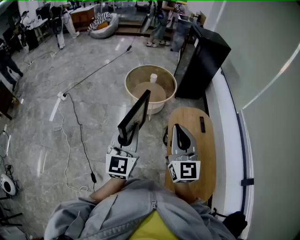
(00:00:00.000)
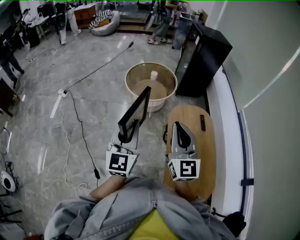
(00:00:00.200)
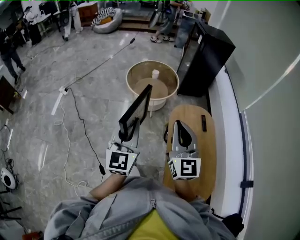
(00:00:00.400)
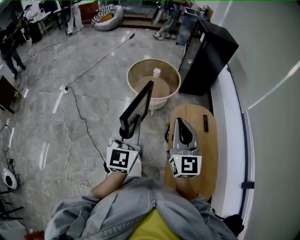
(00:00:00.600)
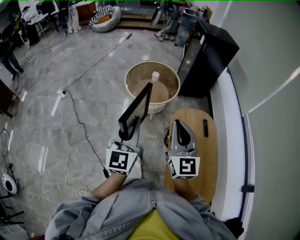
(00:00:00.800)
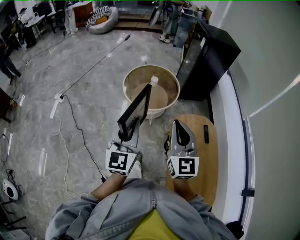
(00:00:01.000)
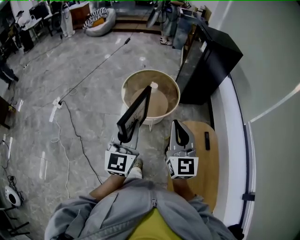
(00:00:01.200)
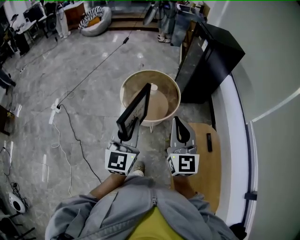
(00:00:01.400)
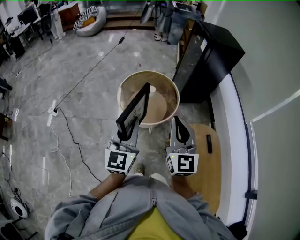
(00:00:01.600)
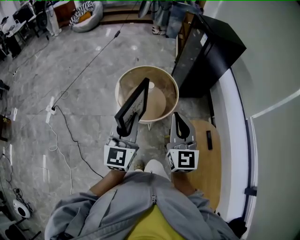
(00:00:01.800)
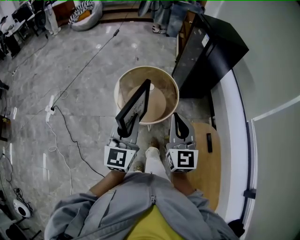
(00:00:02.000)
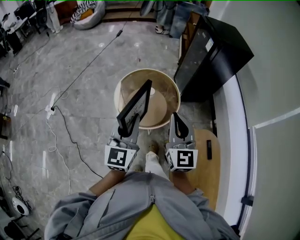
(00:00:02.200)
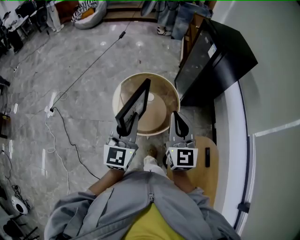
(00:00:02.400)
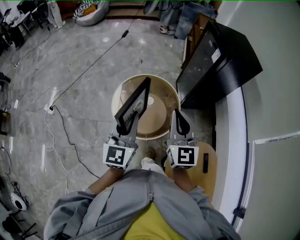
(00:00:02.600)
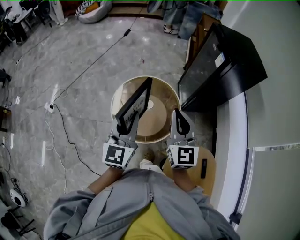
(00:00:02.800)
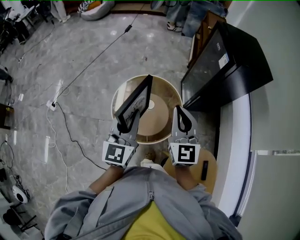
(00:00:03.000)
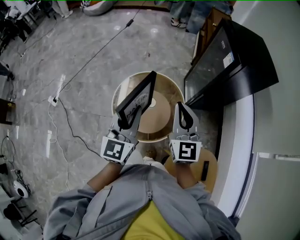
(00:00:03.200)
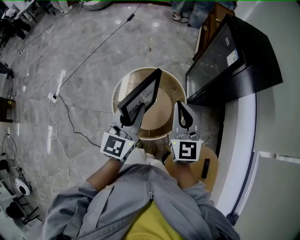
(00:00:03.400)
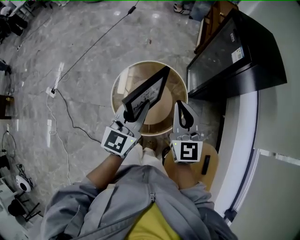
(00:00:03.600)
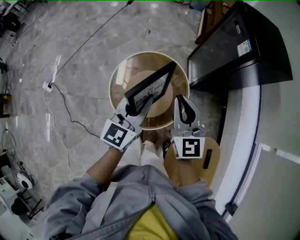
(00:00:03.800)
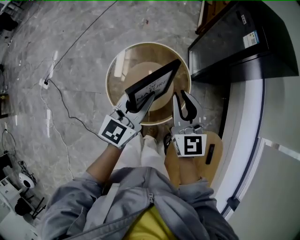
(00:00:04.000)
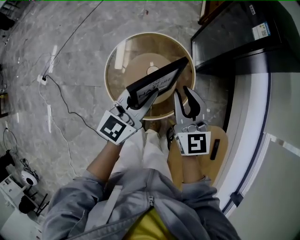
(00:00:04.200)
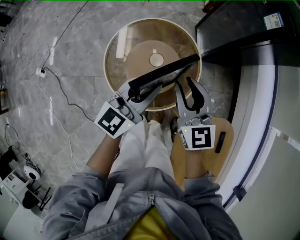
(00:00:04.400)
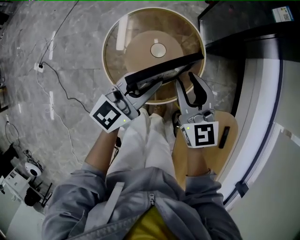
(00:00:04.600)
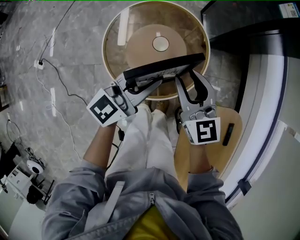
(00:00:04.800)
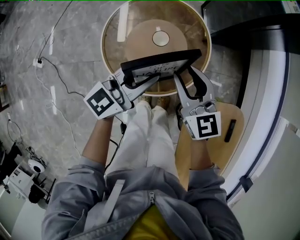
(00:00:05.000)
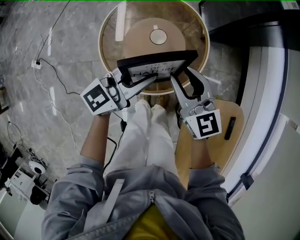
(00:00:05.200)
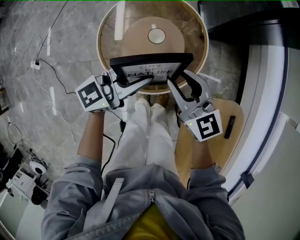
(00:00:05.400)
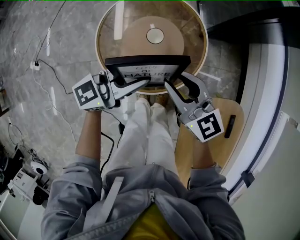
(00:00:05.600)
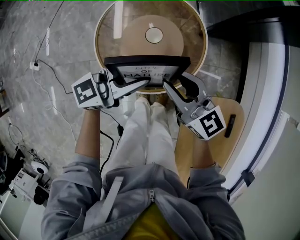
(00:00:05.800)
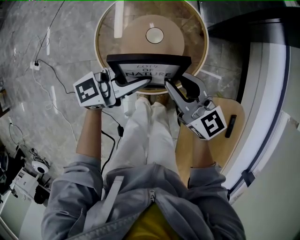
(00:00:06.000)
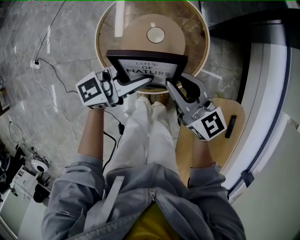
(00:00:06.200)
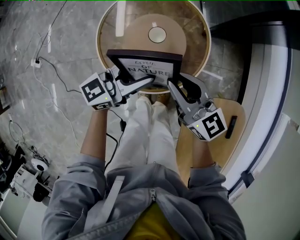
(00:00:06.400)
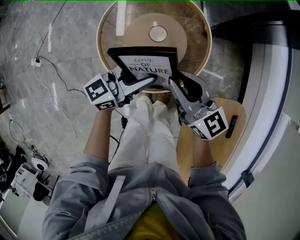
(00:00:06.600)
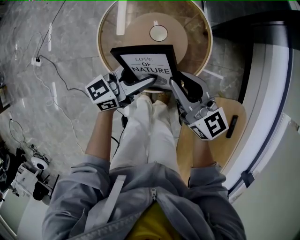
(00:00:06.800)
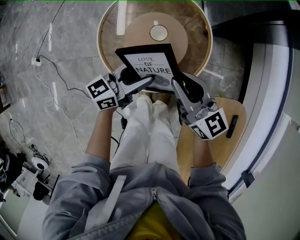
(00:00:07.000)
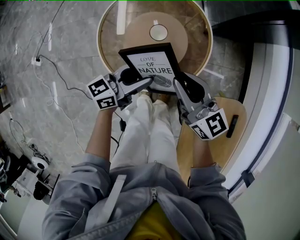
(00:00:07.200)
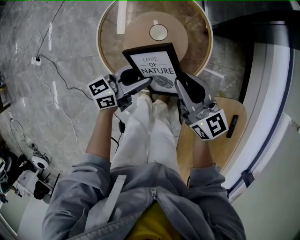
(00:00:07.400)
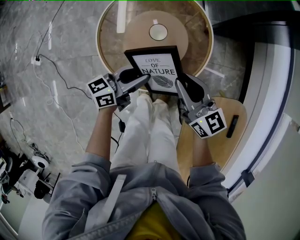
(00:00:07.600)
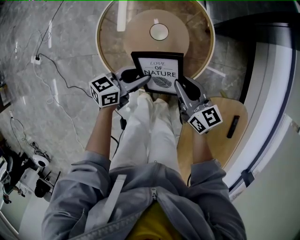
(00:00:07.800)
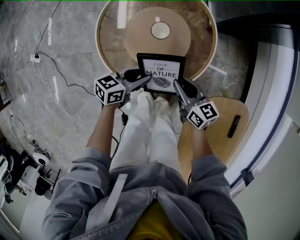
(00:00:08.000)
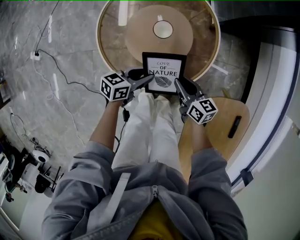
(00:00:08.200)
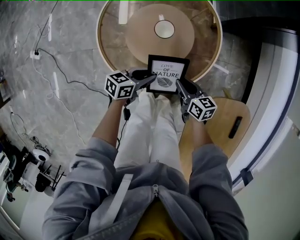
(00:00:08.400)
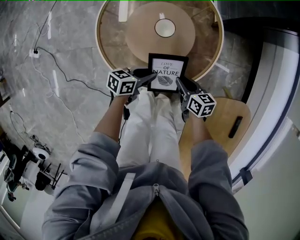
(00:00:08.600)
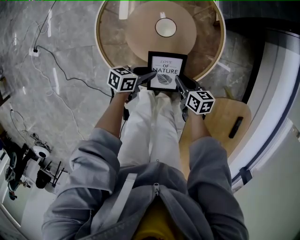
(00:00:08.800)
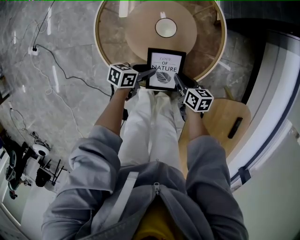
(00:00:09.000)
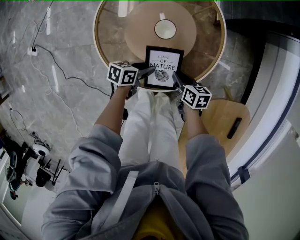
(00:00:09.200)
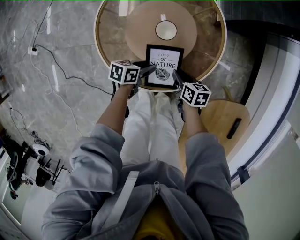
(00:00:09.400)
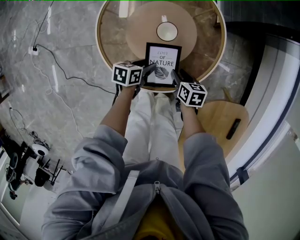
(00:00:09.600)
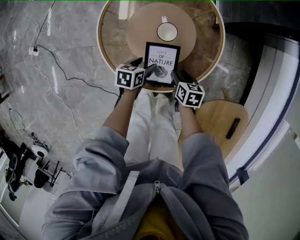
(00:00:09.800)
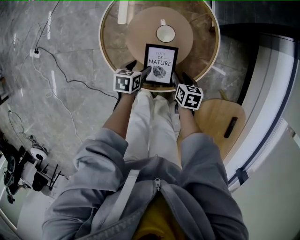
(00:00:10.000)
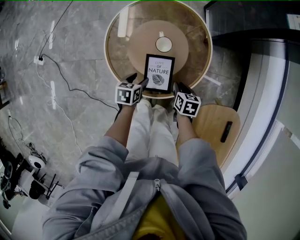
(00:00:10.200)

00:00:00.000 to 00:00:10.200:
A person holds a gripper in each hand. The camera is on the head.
00:00:00.000 to 00:00:01.400: Both grippers travel together forward, about 35 cm.
00:00:01.400 to 00:00:03.000: The two grippers go roughly 40 cm forward.
00:00:03.000 to 00:00:04.400: Both grippers travel together downward, about 20 cm. The right gripper opens up. Meanwhile the left gripper swivels some 30 degrees.
00:00:04.400 to 00:00:05.800: The left gripper shifts about 10 cm downward, and turns by some 30 degrees; the right gripper moves downward and backward, approximately 10 cm, and rotates some 30 degrees.
00:00:05.800 to 00:00:07.200: The left gripper travels downward by some 10 cm, rotates roughly 30 degrees, and opens.
00:00:07.200 to 00:00:08.800: Both grippers move downward, roughly 25 cm. The left gripper turns by approximately 40 degrees. The right gripper angles its fingers downward, by approximately 30 degrees.
00:00:08.800 to 00:00:10.200: The right gripper travels upward by about 5 cm, changes its angle by approximately 20 degrees, and opens, then closes again. Meanwhile the left gripper heads to the left and upward, covering roughly 10 cm, turns by about 30 degrees, and opens.

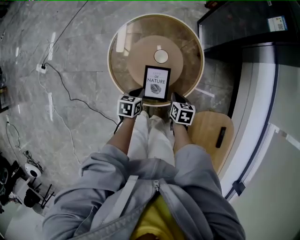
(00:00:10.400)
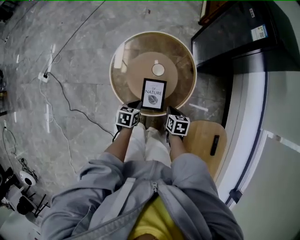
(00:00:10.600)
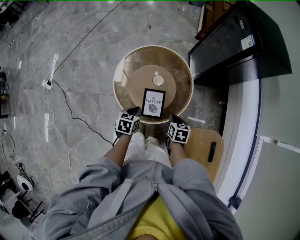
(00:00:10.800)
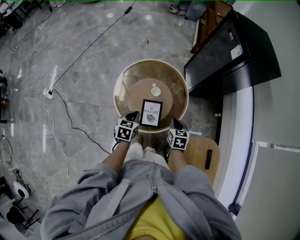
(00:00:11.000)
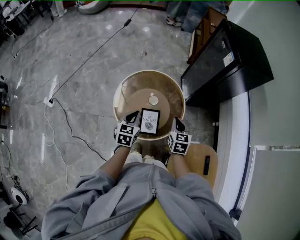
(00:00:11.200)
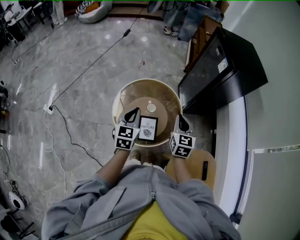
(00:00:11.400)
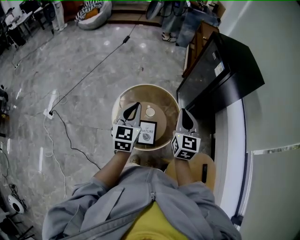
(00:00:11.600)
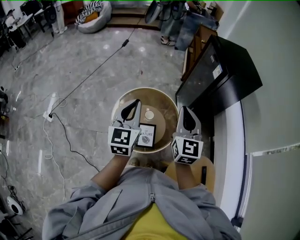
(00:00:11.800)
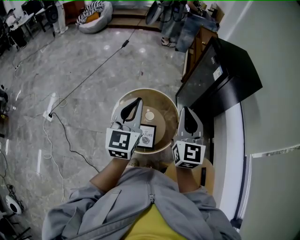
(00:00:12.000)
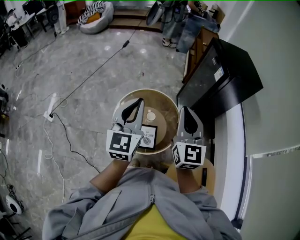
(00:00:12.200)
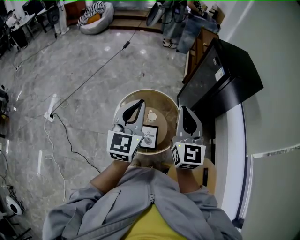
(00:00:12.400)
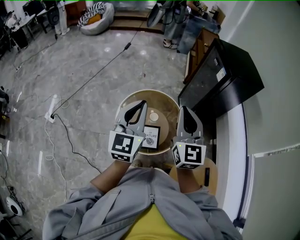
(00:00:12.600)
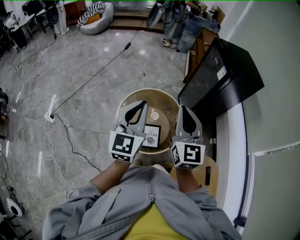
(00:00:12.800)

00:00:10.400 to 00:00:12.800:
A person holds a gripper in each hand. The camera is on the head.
00:00:10.400 to 00:00:11.600: Both grippers travel together upward, roughly 40 cm. The left gripper tilts its fingers roughly 40 degrees upward. Meanwhile the right gripper angles its fingers upward, by approximately 50 degrees.
00:00:11.600 to 00:00:12.800: The right gripper is displaced upward and to the left by about 15 cm. The left gripper is displaced upward by some 10 cm.

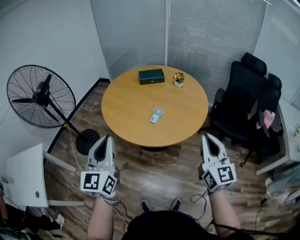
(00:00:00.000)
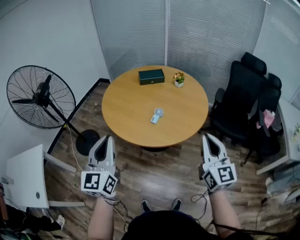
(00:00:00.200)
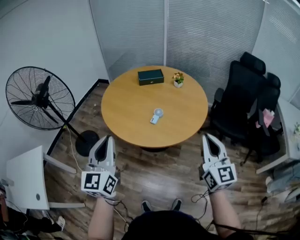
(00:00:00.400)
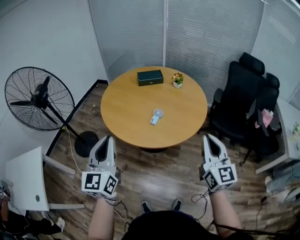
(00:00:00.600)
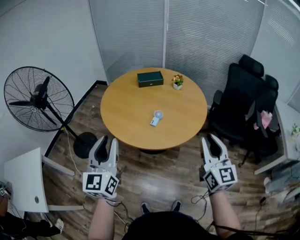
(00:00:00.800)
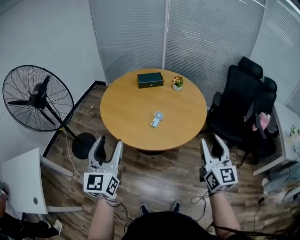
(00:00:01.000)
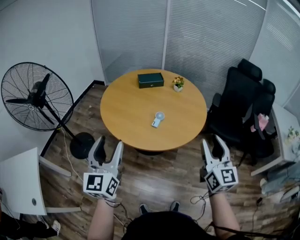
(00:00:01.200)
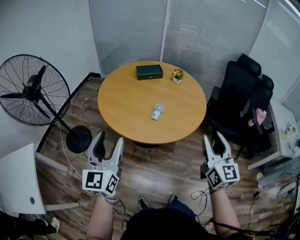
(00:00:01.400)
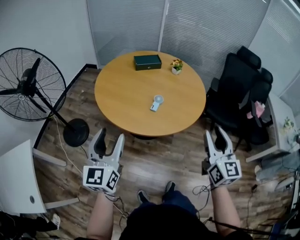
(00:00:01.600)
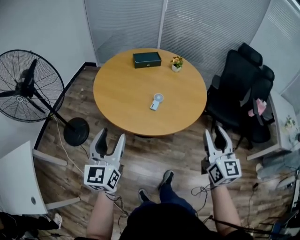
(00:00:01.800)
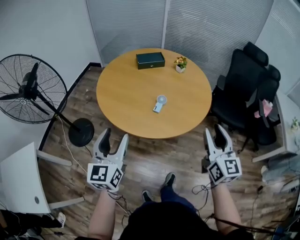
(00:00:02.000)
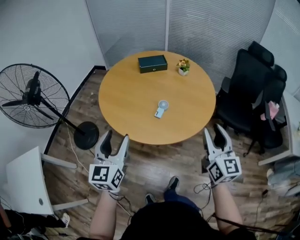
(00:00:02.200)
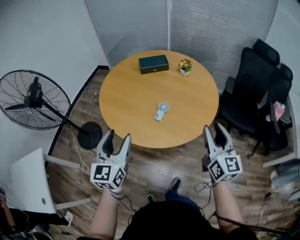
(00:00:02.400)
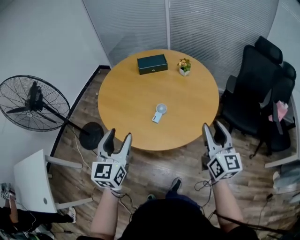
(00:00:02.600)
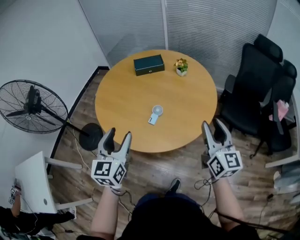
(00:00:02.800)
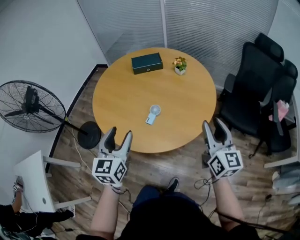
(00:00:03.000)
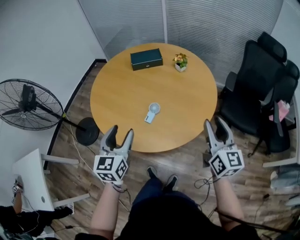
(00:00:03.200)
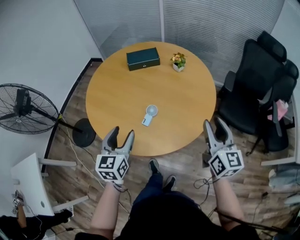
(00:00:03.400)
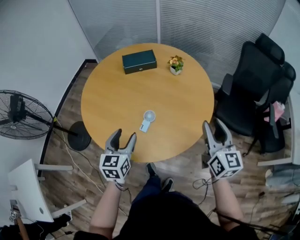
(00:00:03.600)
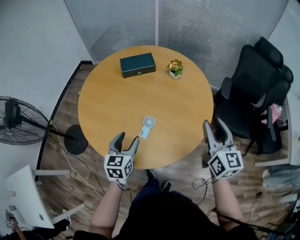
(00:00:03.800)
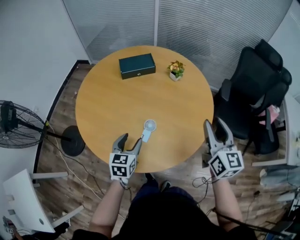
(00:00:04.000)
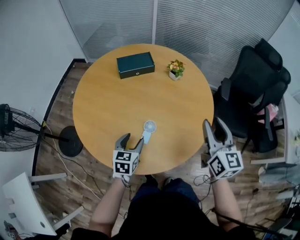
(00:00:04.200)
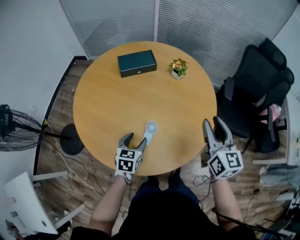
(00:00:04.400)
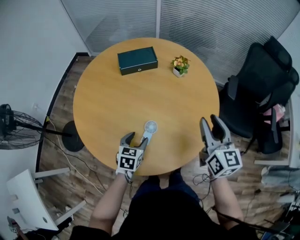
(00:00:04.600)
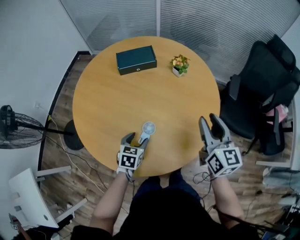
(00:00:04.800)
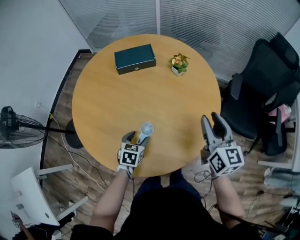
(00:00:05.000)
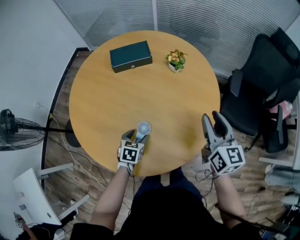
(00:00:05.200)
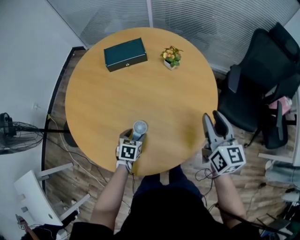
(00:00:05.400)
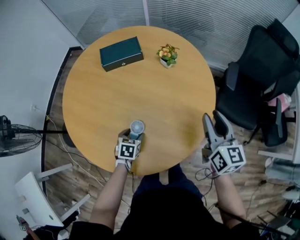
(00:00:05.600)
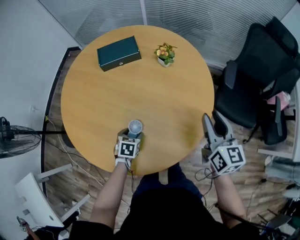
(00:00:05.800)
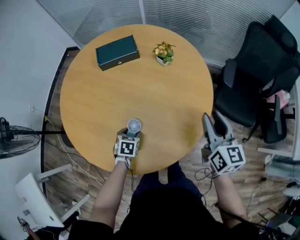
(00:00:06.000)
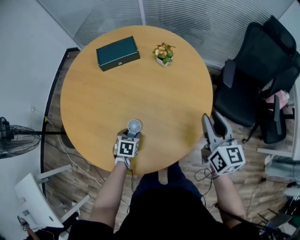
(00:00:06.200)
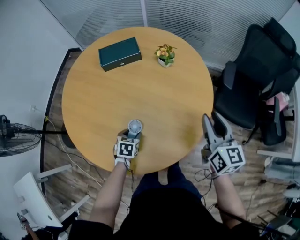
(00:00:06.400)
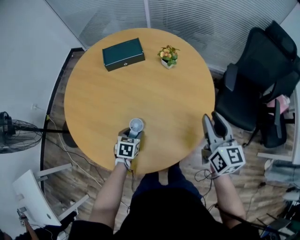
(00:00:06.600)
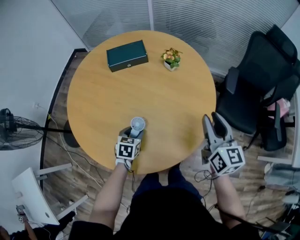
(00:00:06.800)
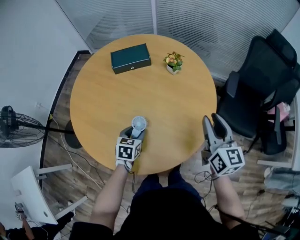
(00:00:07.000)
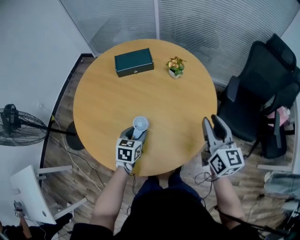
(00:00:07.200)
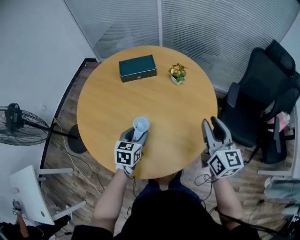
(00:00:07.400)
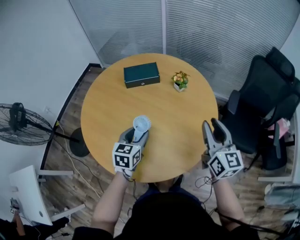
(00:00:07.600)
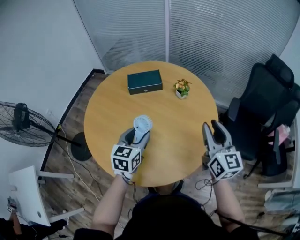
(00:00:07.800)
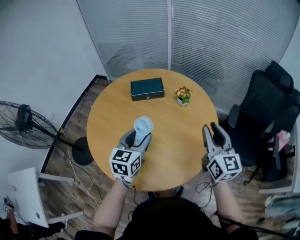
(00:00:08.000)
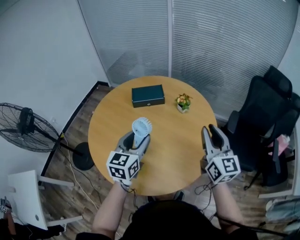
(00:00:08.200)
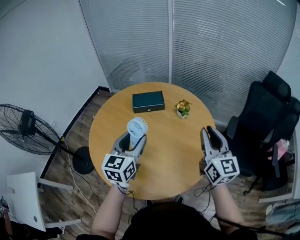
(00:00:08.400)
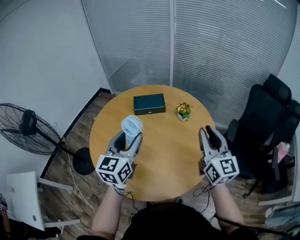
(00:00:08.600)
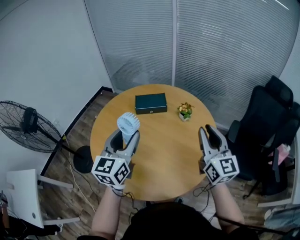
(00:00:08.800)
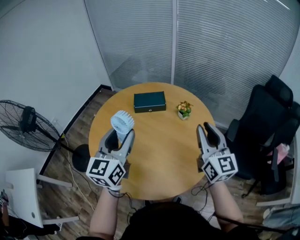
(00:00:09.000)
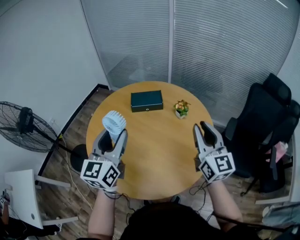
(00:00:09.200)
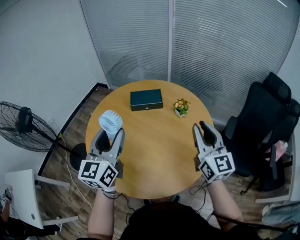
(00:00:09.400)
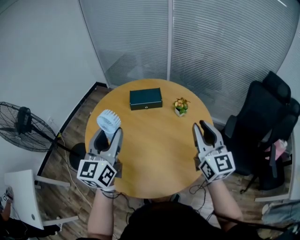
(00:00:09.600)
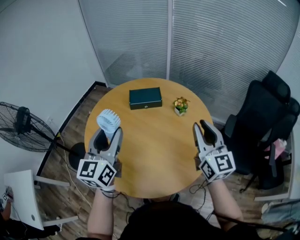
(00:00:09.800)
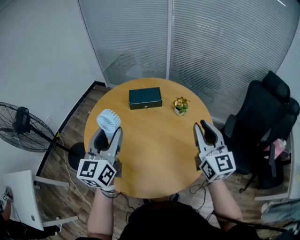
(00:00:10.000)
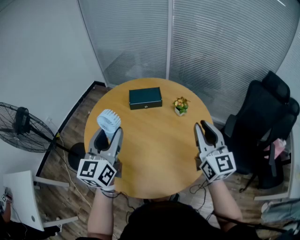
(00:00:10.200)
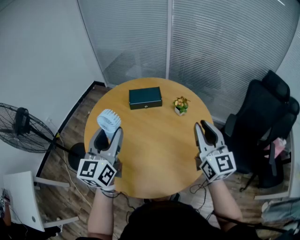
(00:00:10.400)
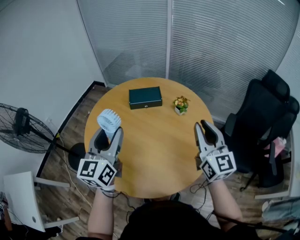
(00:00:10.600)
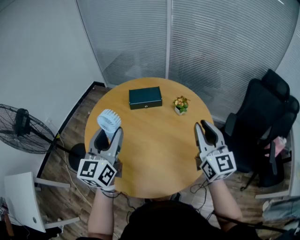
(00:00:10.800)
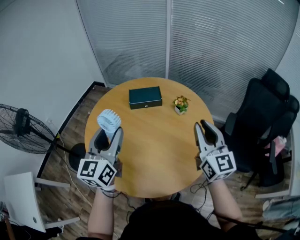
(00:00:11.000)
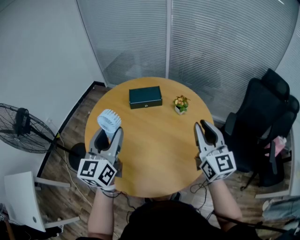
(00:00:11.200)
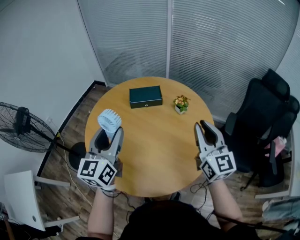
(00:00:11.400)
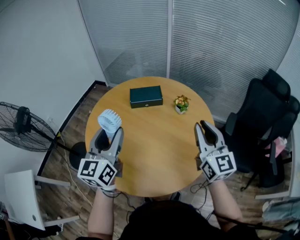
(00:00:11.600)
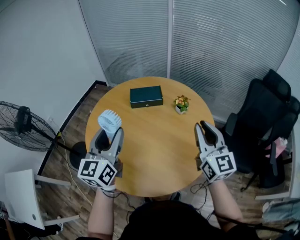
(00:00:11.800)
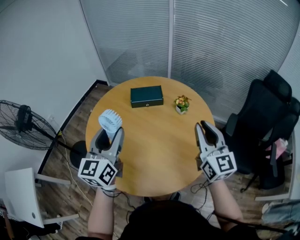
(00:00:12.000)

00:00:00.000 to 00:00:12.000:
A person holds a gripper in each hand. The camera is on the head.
00:00:00.000 to 00:00:01.600: The right gripper heads to the left, covering approximately 5 cm, and opens. Meanwhile the left gripper is displaced to the left and downward by roughly 10 cm, and opens up.
00:00:01.600 to 00:00:03.000: The two grippers go roughly 25 cm forward and to the right.
00:00:03.000 to 00:00:04.400: The left gripper heads downward and forward, covering approximately 30 cm, and rotates about 30 degrees. Meanwhile the right gripper shifts roughly 20 cm forward.
00:00:04.400 to 00:00:06.000: The right gripper goes about 15 cm to the right, downward and forward; the left gripper is displaced downward, to the right and forward by some 15 cm, and rotates approximately 20 degrees.
00:00:06.000 to 00:00:07.600: The right gripper travels upward and to the left by about 10 cm. Meanwhile the left gripper travels upward by roughly 25 cm, and points its fingers about 30 degrees further upward.
00:00:07.600 to 00:00:09.000: The left gripper is displaced upward by approximately 25 cm, and tips its fingers upward by roughly 30 degrees. Meanwhile the right gripper shifts roughly 10 cm upward.
00:00:09.000 to 00:00:12.000: The grippers move only a little.
